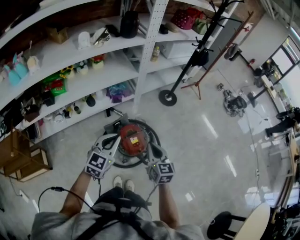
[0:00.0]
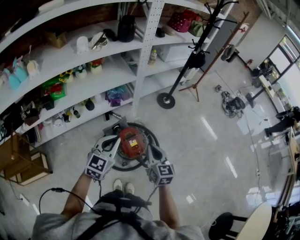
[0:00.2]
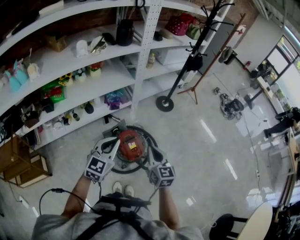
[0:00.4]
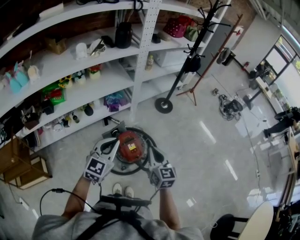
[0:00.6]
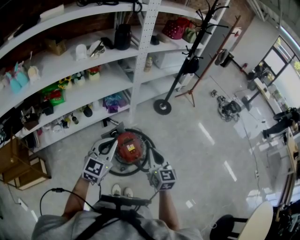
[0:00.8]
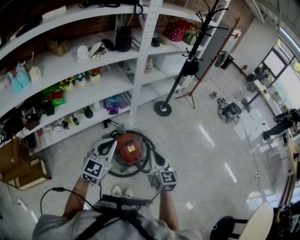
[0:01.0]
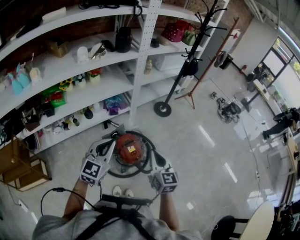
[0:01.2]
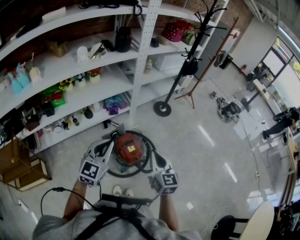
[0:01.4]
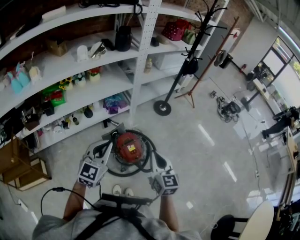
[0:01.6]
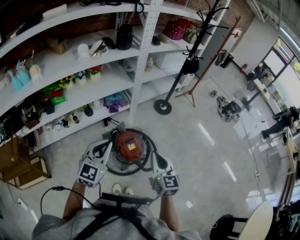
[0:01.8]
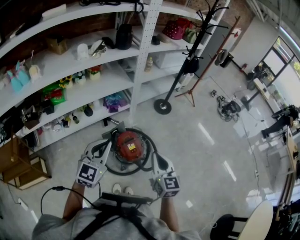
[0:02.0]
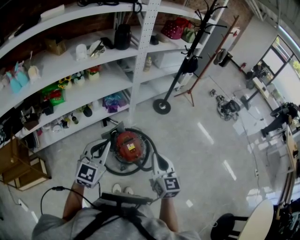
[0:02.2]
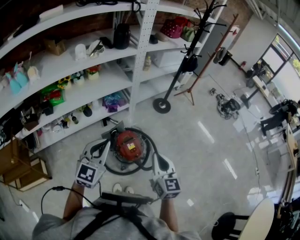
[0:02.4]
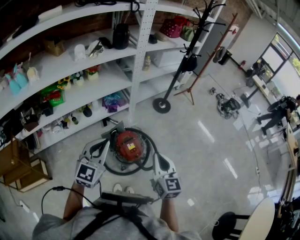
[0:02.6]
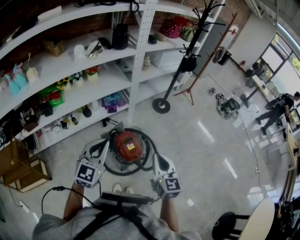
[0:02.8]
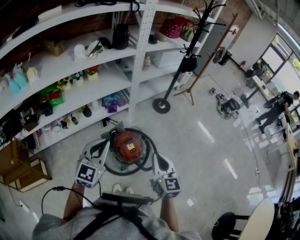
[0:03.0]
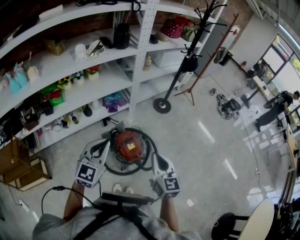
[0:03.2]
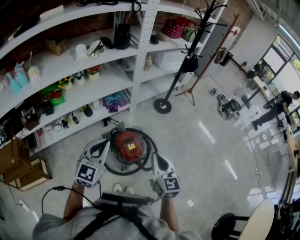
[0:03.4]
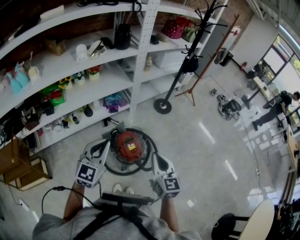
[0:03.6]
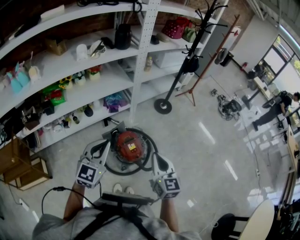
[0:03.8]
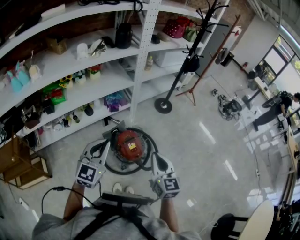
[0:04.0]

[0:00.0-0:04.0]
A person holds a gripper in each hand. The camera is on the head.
0:00.0 to 0:01.4: The left gripper is displaced upward by about 5 cm; the right gripper goes approximately 10 cm upward and backward.
0:01.4 to 0:02.6: The grippers make only small movements.
0:02.6 to 0:04.0: Both grippers stay put.

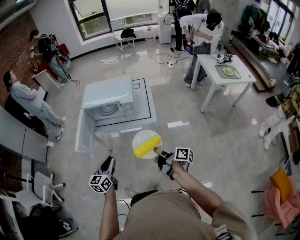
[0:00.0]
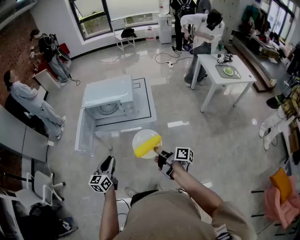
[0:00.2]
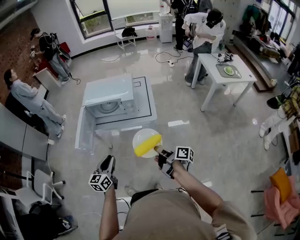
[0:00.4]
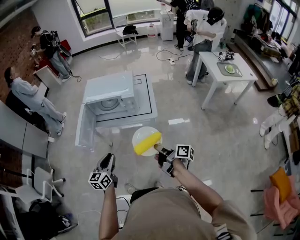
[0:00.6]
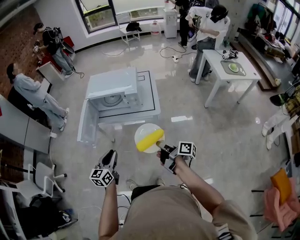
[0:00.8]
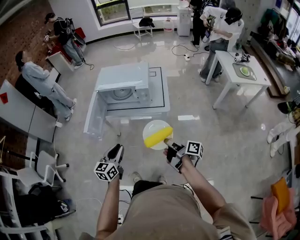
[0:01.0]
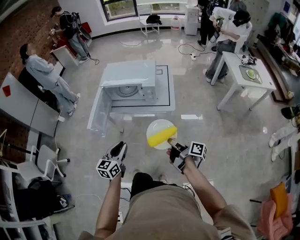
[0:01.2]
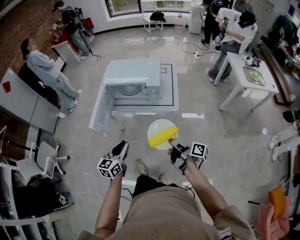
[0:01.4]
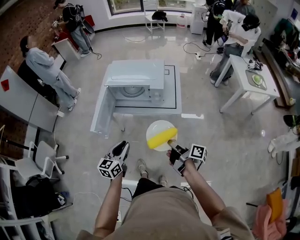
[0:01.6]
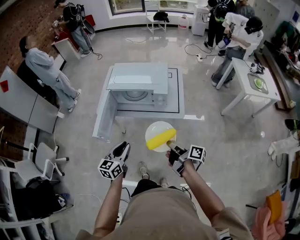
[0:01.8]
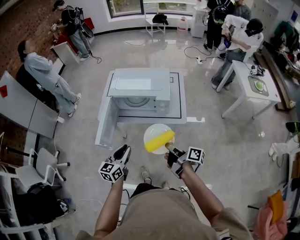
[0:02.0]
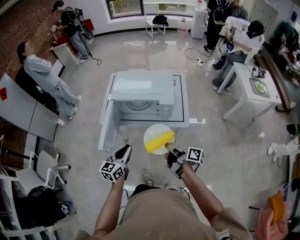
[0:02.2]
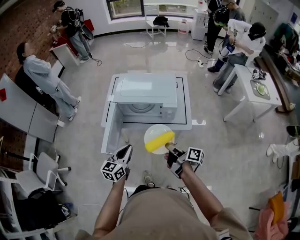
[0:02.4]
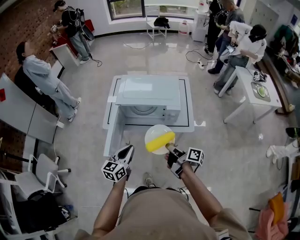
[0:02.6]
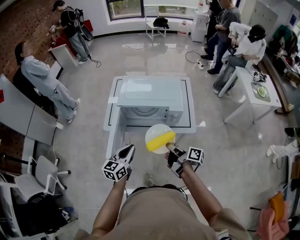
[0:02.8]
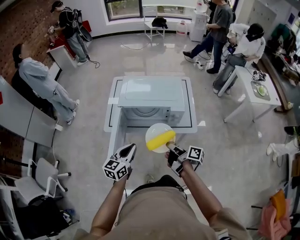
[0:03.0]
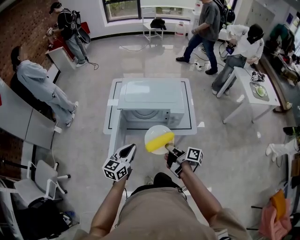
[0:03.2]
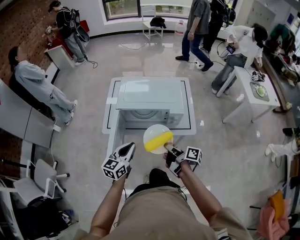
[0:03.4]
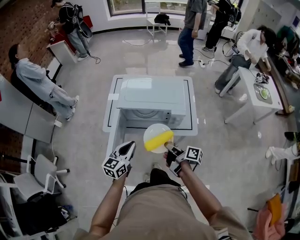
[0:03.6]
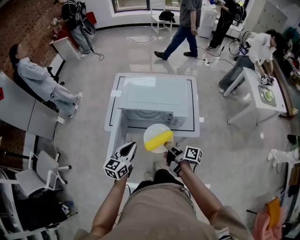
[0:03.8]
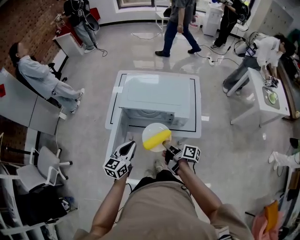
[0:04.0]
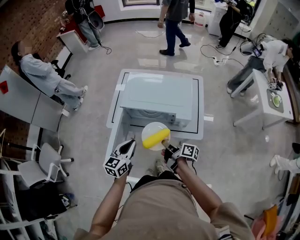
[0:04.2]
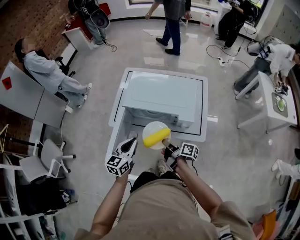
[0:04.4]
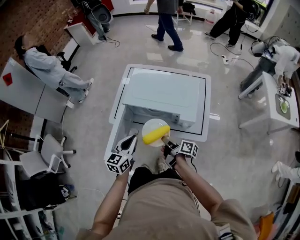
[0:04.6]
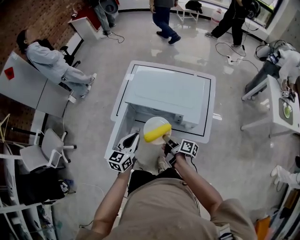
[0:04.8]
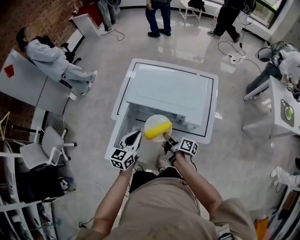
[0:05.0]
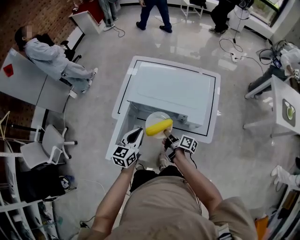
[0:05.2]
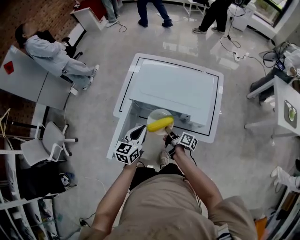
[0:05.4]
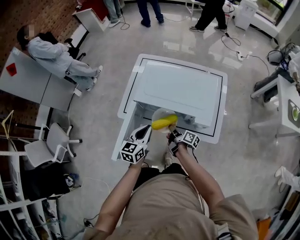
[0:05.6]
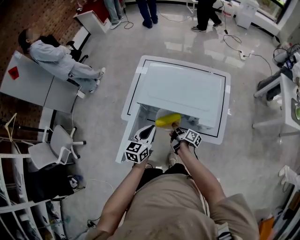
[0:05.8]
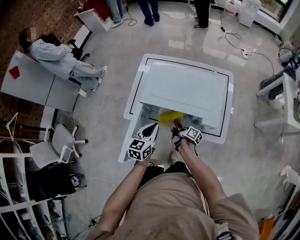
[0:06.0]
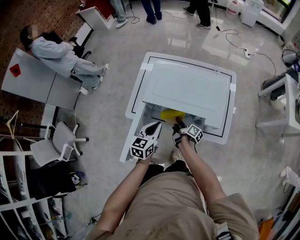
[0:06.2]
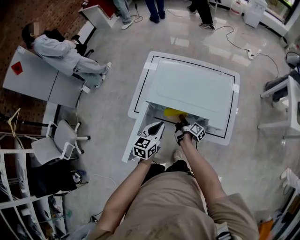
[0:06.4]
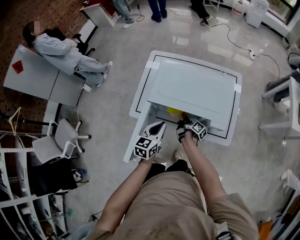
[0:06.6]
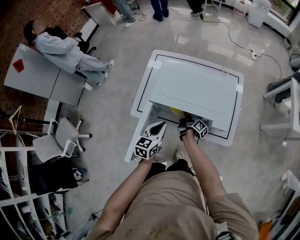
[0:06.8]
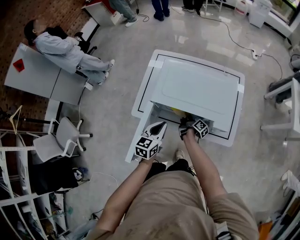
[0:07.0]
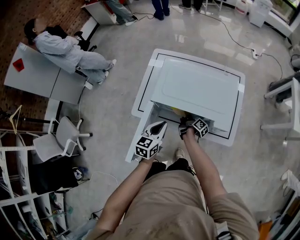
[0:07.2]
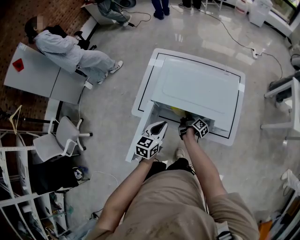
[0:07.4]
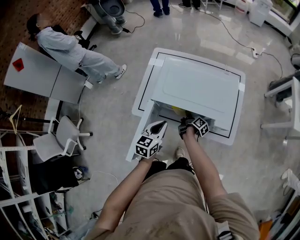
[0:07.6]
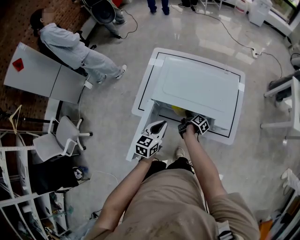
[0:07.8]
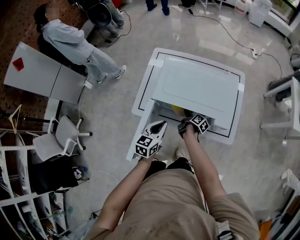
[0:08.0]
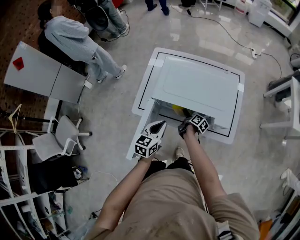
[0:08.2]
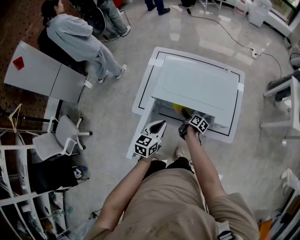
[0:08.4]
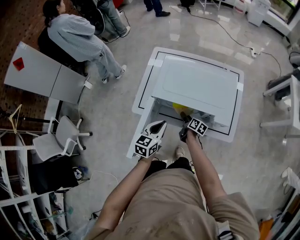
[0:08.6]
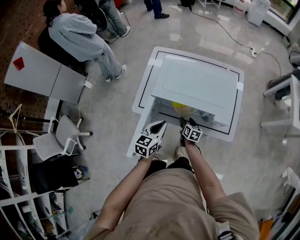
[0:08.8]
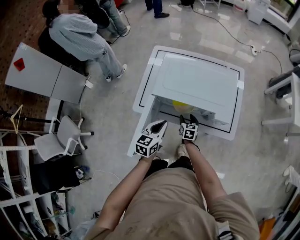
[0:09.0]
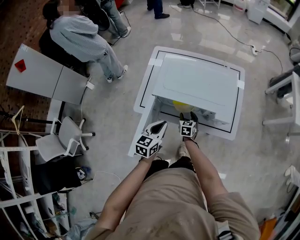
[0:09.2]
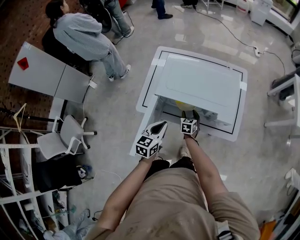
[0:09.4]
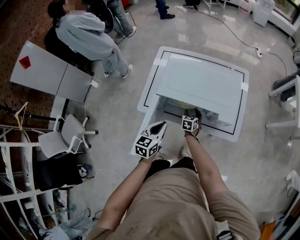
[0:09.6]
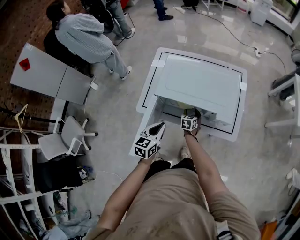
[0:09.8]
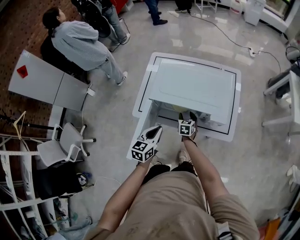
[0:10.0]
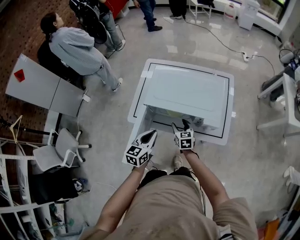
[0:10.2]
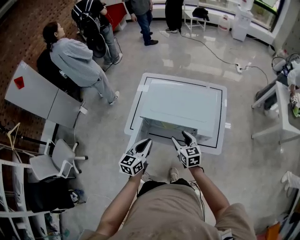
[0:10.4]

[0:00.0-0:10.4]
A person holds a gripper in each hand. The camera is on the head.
0:00.0 to 0:01.4: The grippers stay close to where they were, moving slightly.
0:01.4 to 0:03.0: Both grippers move forward and to the left, some 25 cm.
0:03.0 to 0:04.4: The left gripper travels forward by about 10 cm, while the right gripper is displaced forward and downward by approximately 10 cm.
0:04.4 to 0:06.0: The right gripper heads forward and downward, covering about 20 cm; the left gripper goes roughly 10 cm forward and downward.
0:06.0 to 0:07.4: The right gripper goes some 5 cm forward.
0:07.4 to 0:09.0: The right gripper shifts some 5 cm backward, twists about 70 degrees counterclockwise, seen from behind, and opens.
0:09.0 to 0:10.4: The right gripper heads upward, covering about 20 cm, and rotates roughly 20 degrees; the left gripper shifts roughly 5 cm upward.

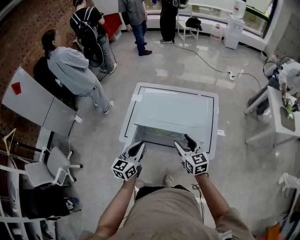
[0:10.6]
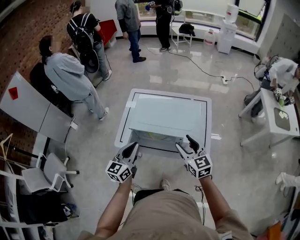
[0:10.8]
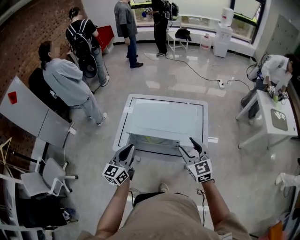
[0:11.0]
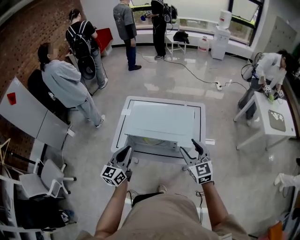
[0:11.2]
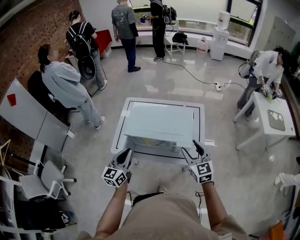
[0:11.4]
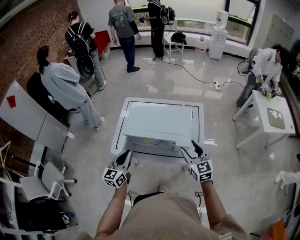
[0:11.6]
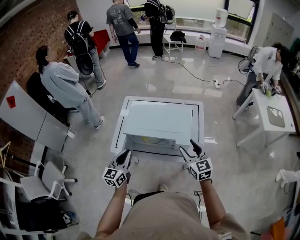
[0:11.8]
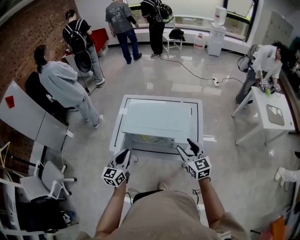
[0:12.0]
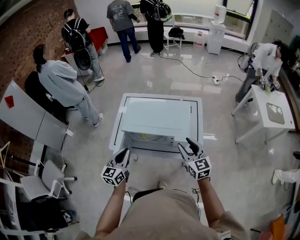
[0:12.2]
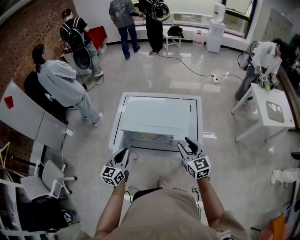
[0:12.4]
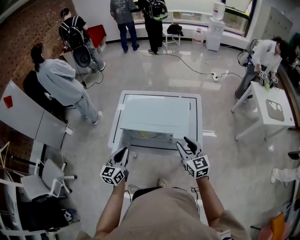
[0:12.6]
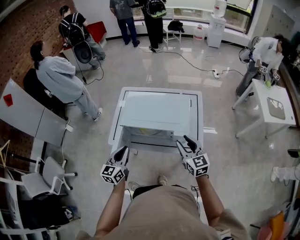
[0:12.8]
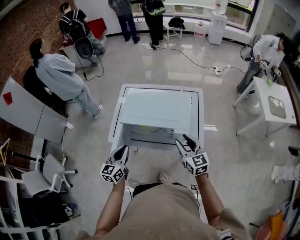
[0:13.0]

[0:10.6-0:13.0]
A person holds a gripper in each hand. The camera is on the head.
0:10.6 to 0:11.8: The right gripper travels to the right by some 10 cm.
0:11.8 to 0:13.0: The grippers stay close to where they were, moving slightly.

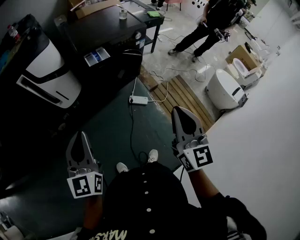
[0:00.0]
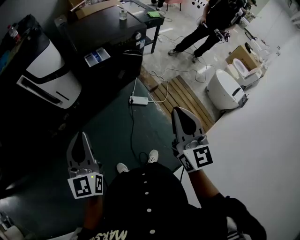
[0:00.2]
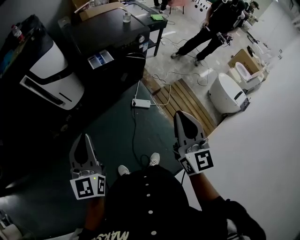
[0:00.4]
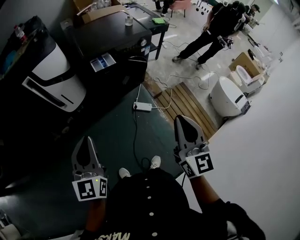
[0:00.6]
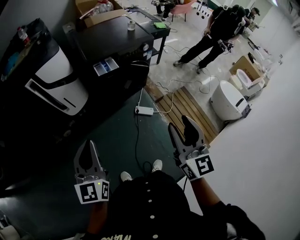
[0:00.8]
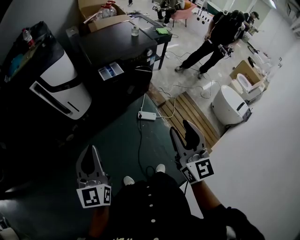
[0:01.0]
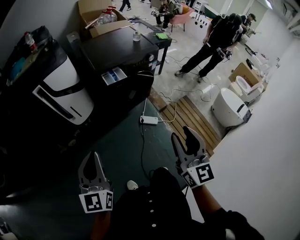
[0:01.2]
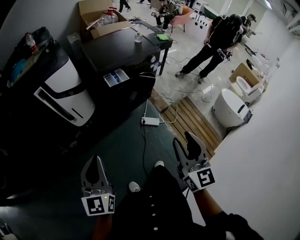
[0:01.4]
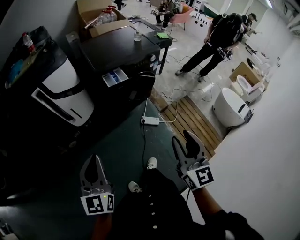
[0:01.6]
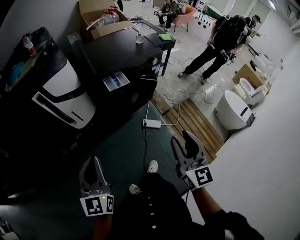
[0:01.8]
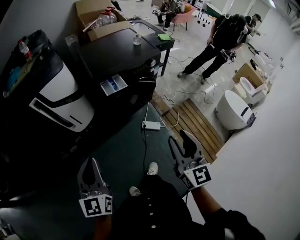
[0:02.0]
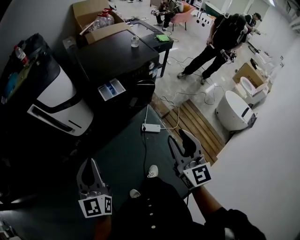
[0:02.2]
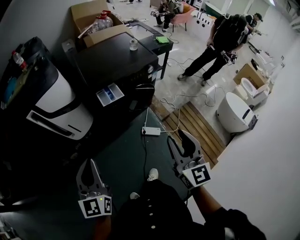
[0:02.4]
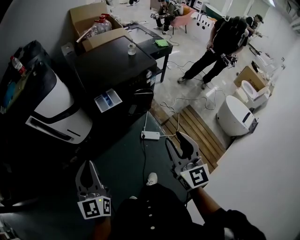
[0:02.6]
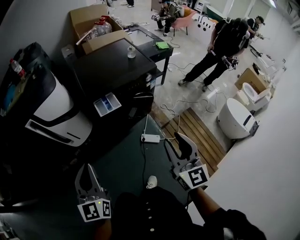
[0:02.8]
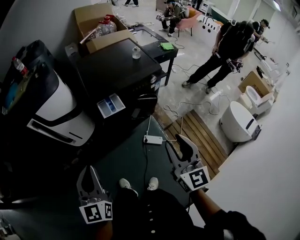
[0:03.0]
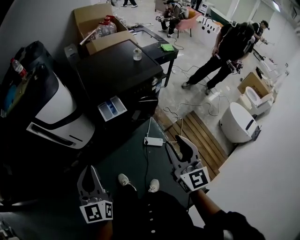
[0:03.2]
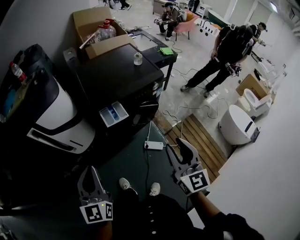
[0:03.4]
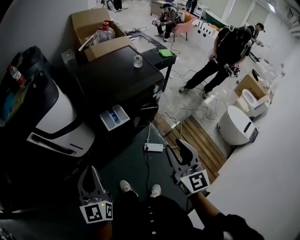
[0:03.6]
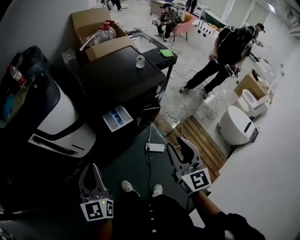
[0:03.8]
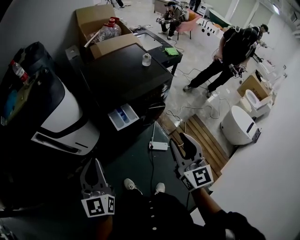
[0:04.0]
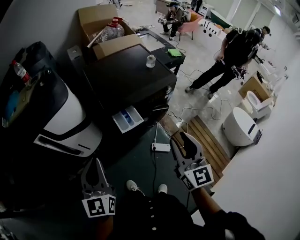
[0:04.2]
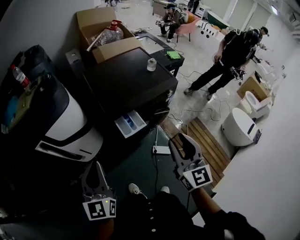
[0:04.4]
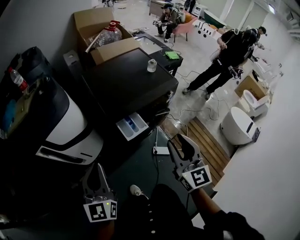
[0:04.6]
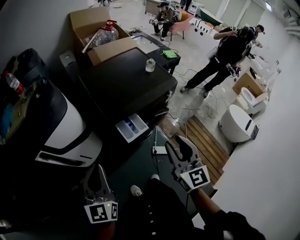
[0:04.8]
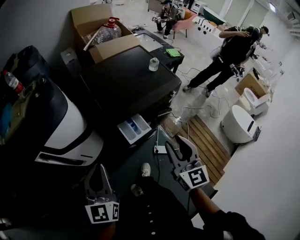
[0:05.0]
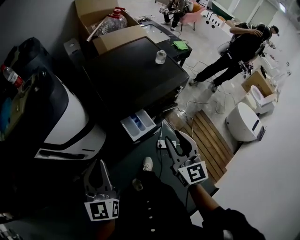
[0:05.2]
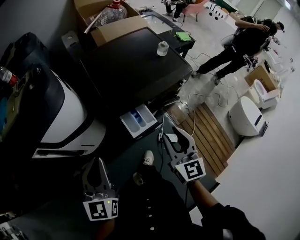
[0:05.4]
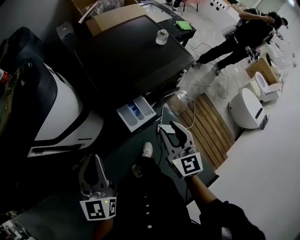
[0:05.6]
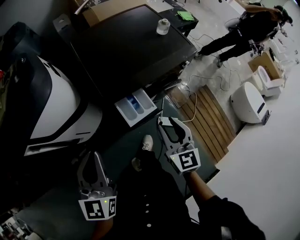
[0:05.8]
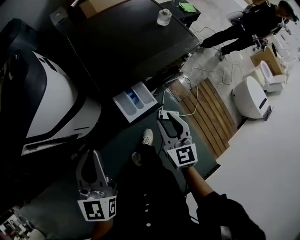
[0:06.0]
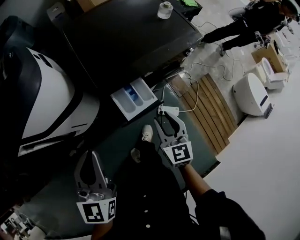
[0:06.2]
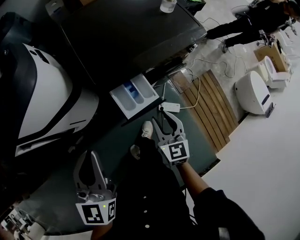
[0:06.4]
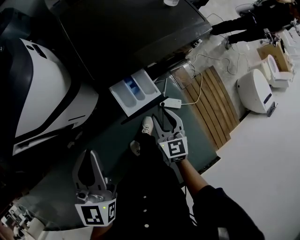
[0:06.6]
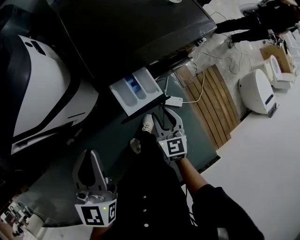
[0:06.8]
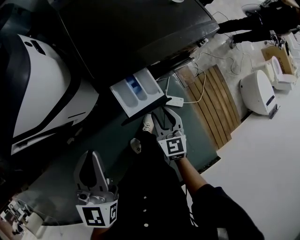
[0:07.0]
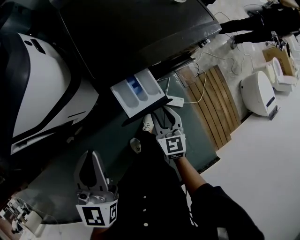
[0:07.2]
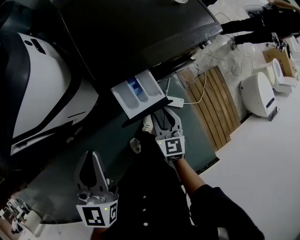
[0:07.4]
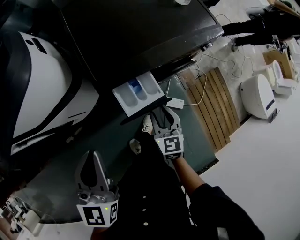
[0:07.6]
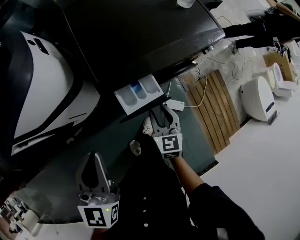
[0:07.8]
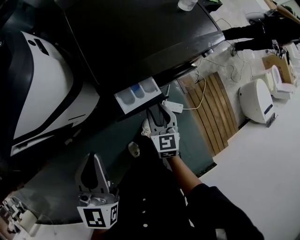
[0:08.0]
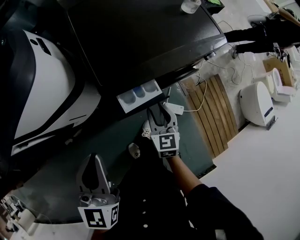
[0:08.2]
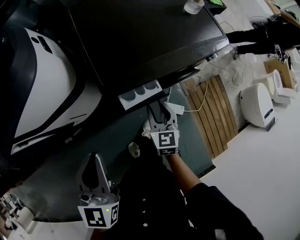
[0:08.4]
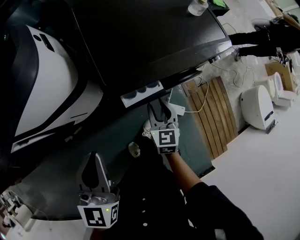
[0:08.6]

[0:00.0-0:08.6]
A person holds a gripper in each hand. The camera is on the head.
0:00.0 to 0:01.4: The grippers both shift to the left by approximately 10 cm. The right gripper opens its fingers.
0:01.4 to 0:02.8: The right gripper moves forward, some 20 cm. Meanwhile the left gripper is displaced forward and to the right by approximately 15 cm.
0:02.8 to 0:04.4: The two grippers go approximately 20 cm forward and to the left.
0:04.4 to 0:05.8: The right gripper travels downward and forward by roughly 20 cm. Meanwhile the left gripper travels forward and downward by roughly 10 cm.
0:05.8 to 0:07.2: The left gripper goes about 5 cm downward. The right gripper heads downward, covering some 20 cm.
0:07.2 to 0:08.6: The right gripper moves forward, some 10 cm.
